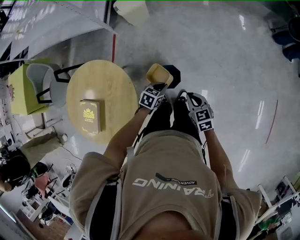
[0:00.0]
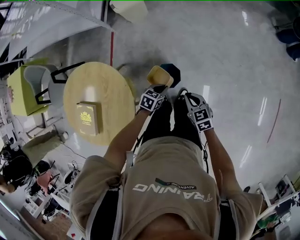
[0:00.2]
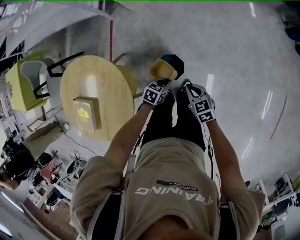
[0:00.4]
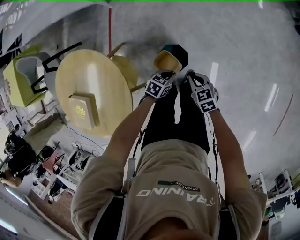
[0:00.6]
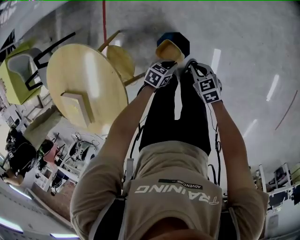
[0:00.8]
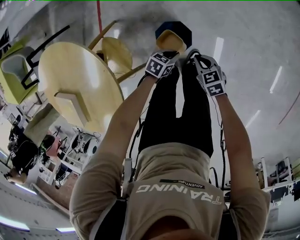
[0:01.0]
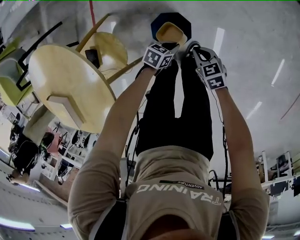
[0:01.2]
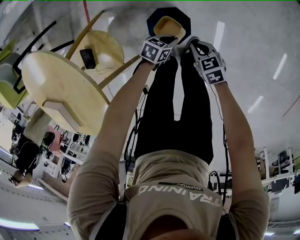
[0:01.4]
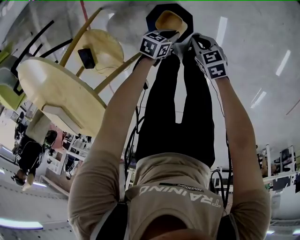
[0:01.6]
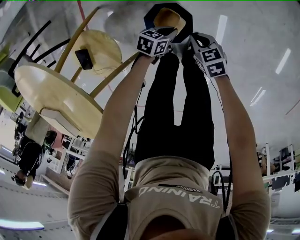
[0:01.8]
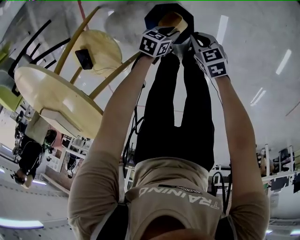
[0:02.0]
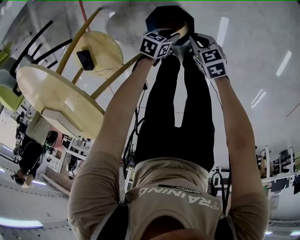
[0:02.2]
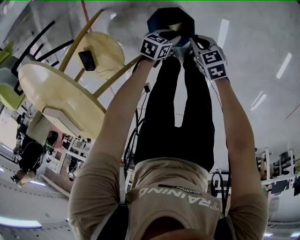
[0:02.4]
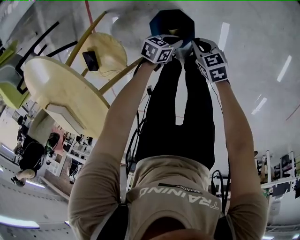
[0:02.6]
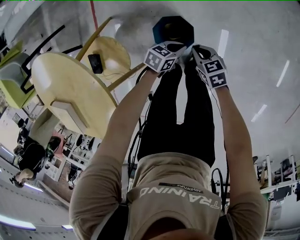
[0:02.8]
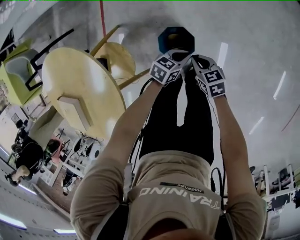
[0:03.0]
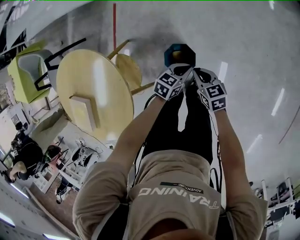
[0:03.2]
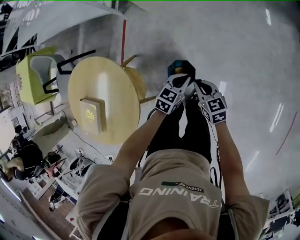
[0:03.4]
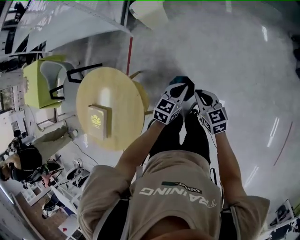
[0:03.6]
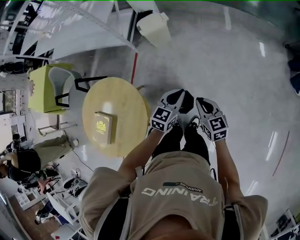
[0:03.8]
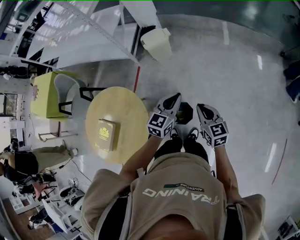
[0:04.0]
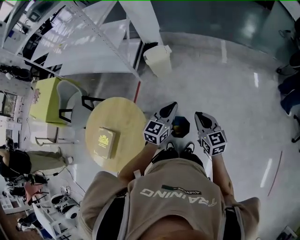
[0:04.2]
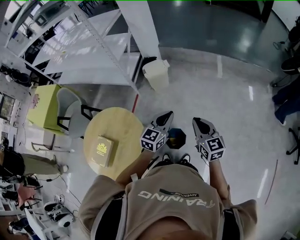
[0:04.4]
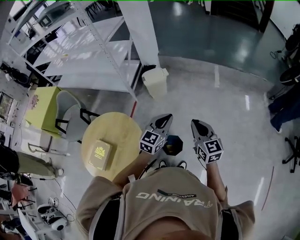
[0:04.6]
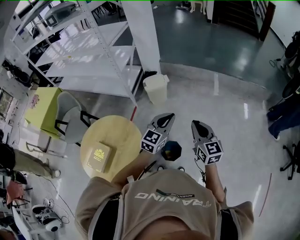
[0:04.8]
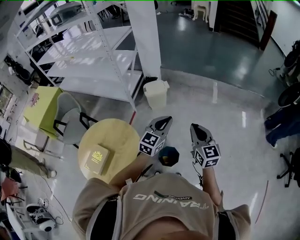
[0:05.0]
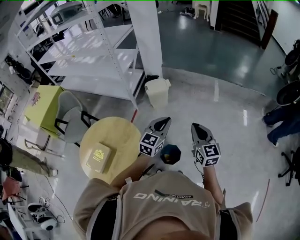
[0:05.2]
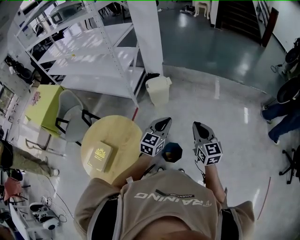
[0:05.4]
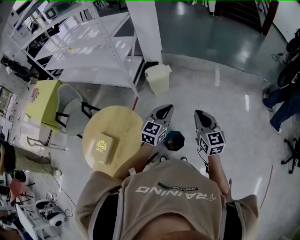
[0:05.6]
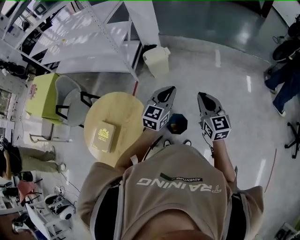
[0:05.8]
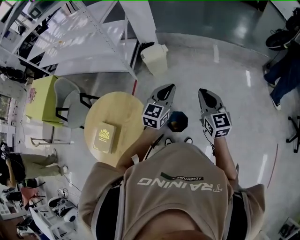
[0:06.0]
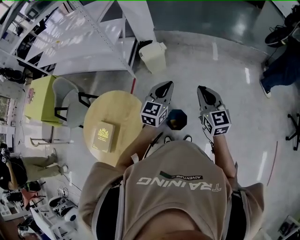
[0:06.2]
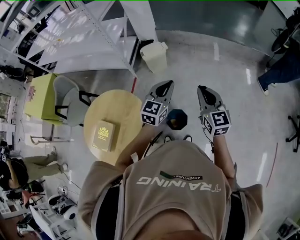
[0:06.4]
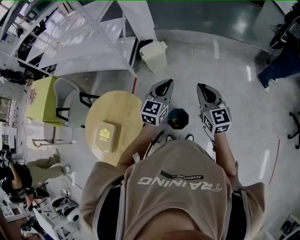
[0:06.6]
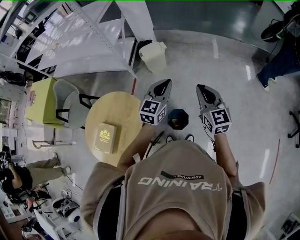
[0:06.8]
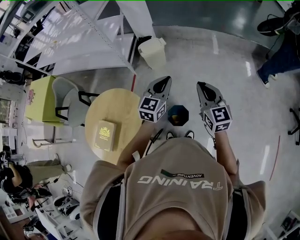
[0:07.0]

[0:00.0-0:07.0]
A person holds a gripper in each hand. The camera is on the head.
0:00.0 to 0:01.4: Both grippers move downward, some 40 cm. The right gripper changes its angle by approximately 20 degrees.
0:01.4 to 0:02.8: The right gripper travels downward and back again, about 5 cm each way, while the left gripper is displaced upward by approximately 5 cm, and opens, then closes again.
0:02.8 to 0:04.2: The grippers both shift upward by about 60 cm. The right gripper tilts its fingers some 30 degrees upward, while the left gripper angles its fingers upward, by approximately 30 degrees.
0:04.2 to 0:05.6: The grippers both shift upward by some 10 cm.
0:05.6 to 0:07.0: The grippers stay close to where they were, moving slightly.

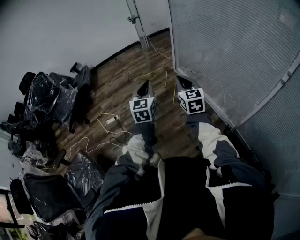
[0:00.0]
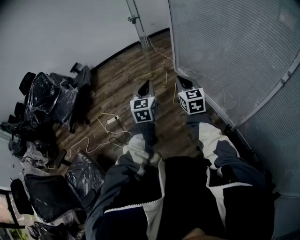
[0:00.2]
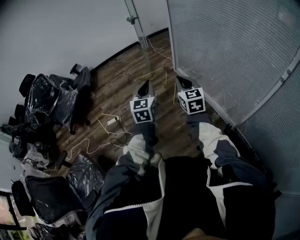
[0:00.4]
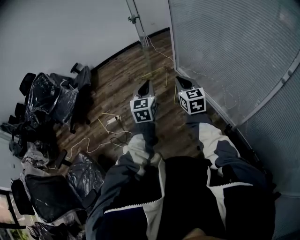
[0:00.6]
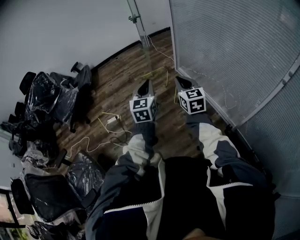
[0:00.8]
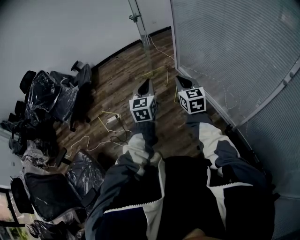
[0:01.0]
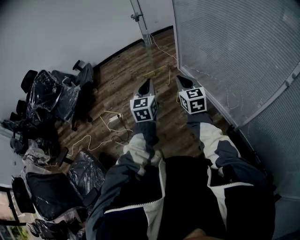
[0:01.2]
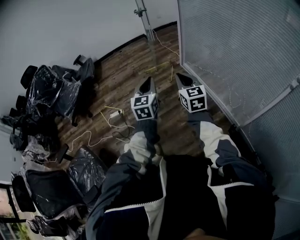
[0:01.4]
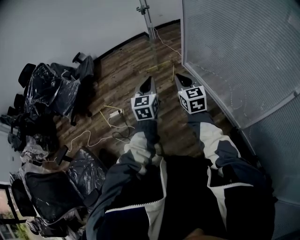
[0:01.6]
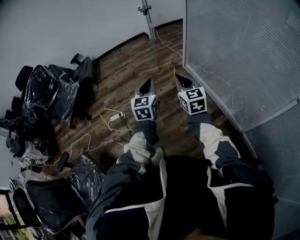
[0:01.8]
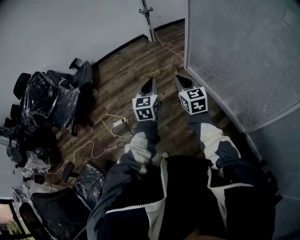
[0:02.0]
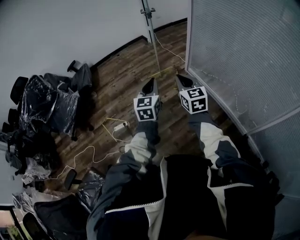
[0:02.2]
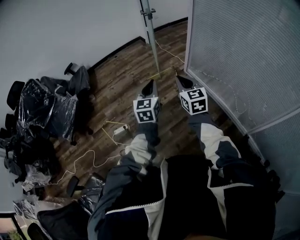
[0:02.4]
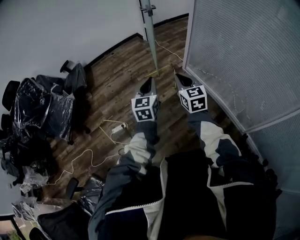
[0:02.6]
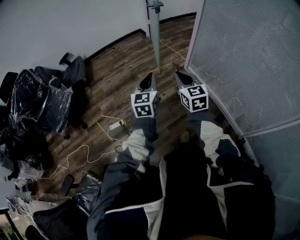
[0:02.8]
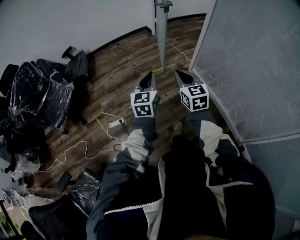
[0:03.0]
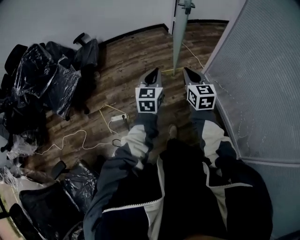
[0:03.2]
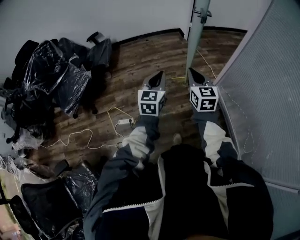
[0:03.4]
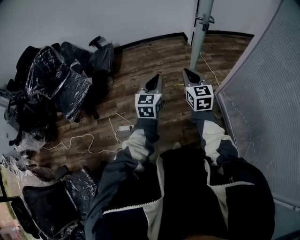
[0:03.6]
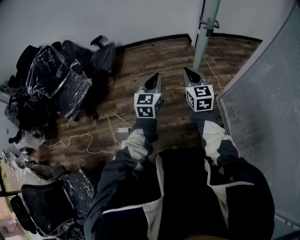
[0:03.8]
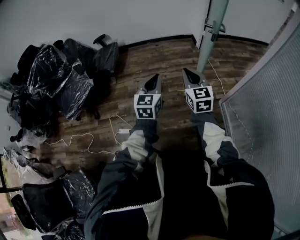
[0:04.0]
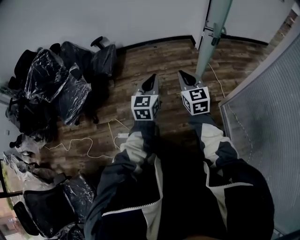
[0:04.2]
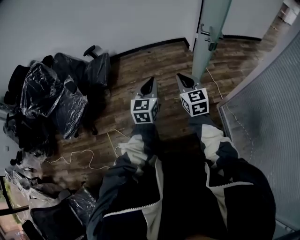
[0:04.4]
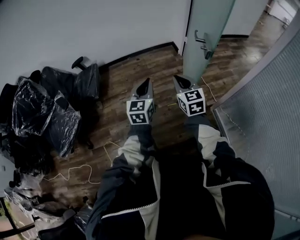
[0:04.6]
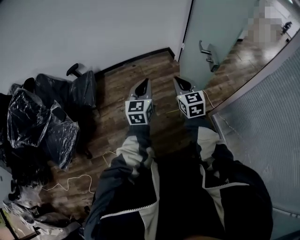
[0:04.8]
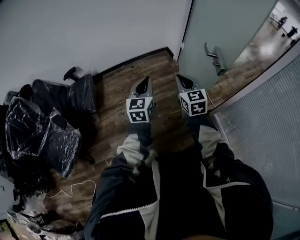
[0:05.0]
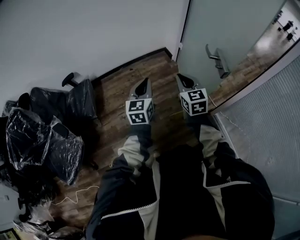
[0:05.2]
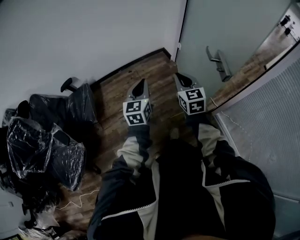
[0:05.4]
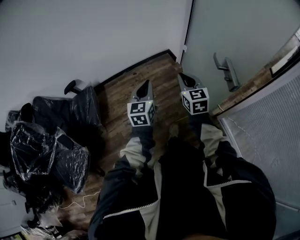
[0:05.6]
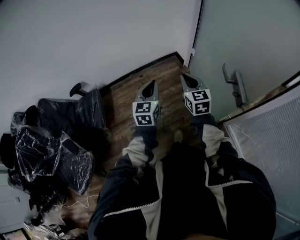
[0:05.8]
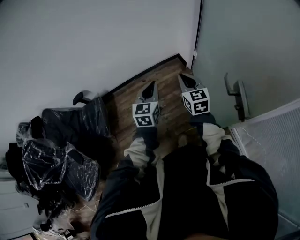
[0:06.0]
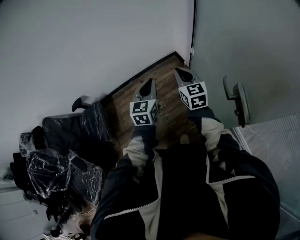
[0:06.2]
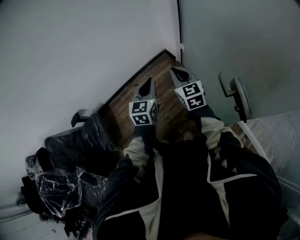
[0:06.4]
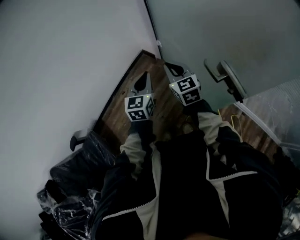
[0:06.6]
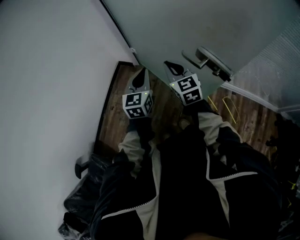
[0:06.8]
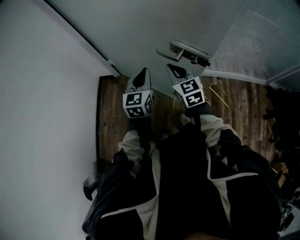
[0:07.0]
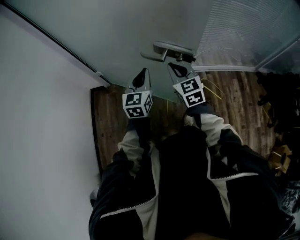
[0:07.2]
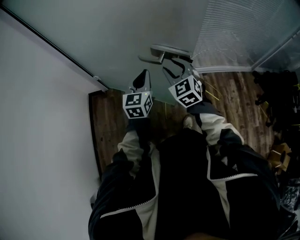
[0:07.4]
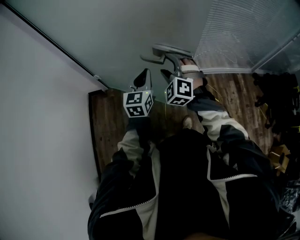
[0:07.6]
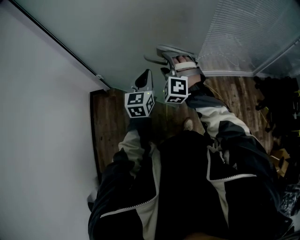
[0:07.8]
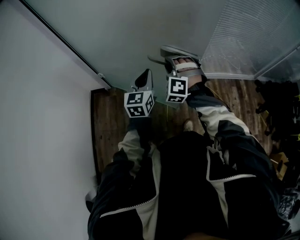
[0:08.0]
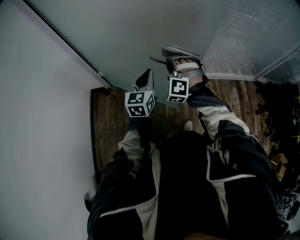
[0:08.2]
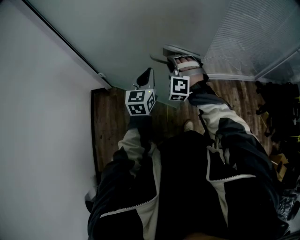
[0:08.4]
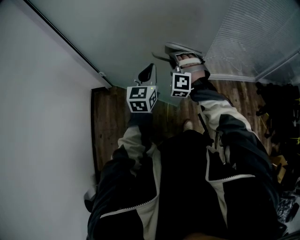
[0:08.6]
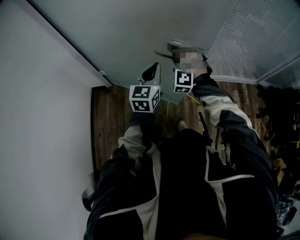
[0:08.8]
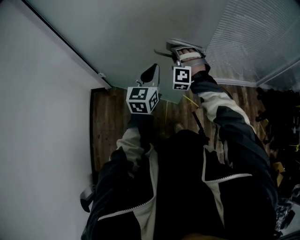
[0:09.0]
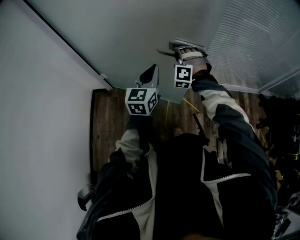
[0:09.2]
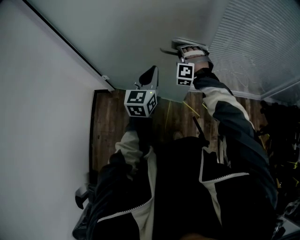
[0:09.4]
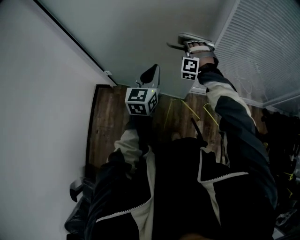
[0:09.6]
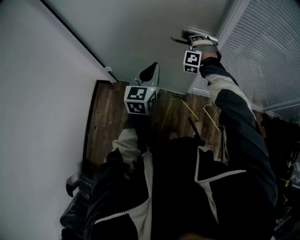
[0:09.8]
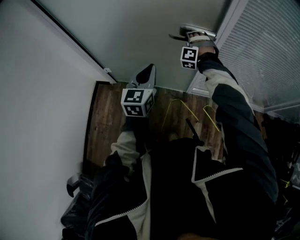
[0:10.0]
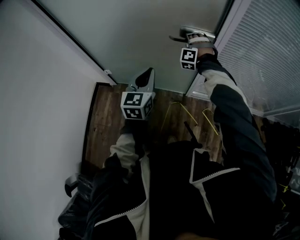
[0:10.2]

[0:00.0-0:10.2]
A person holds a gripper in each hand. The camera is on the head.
0:00.0 to 0:01.4: The grippers make only small movements.
0:01.4 to 0:03.0: The grippers both shift forward and to the left by roughly 35 cm.
0:03.0 to 0:04.4: Both grippers move forward, about 35 cm.
0:04.4 to 0:05.8: The grippers both shift forward by roughly 35 cm.
0:05.8 to 0:07.2: The right gripper ends up approximately 20 cm from where it was, and changes its angle by roughly 60 degrees. The left gripper ends up some 30 cm from where it was, and changes its angle by about 70 degrees.
0:07.2 to 0:08.8: The right gripper is displaced forward and downward by some 10 cm, rolls counterclockwise, seen from behind, by roughly 80 degrees, and opens its fingers.
0:08.8 to 0:10.2: The right gripper shifts roughly 30 cm forward. Meanwhile the left gripper moves forward, roughly 10 cm.

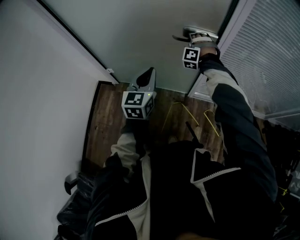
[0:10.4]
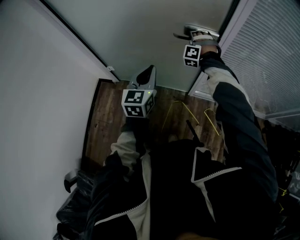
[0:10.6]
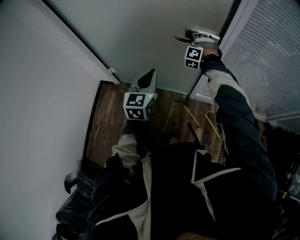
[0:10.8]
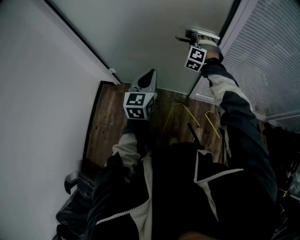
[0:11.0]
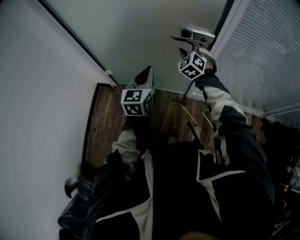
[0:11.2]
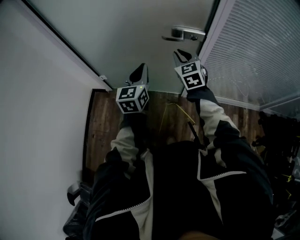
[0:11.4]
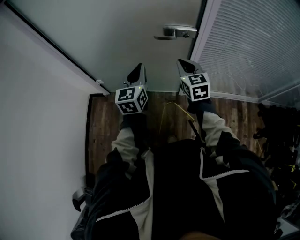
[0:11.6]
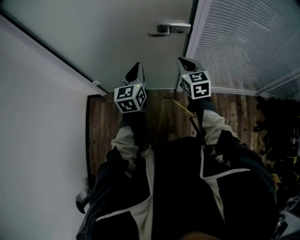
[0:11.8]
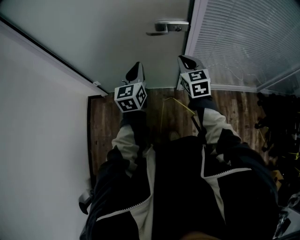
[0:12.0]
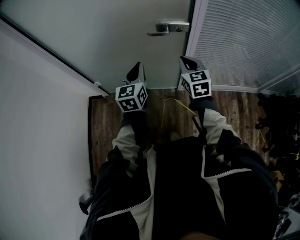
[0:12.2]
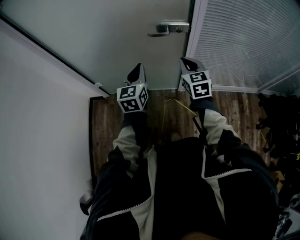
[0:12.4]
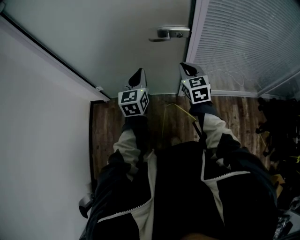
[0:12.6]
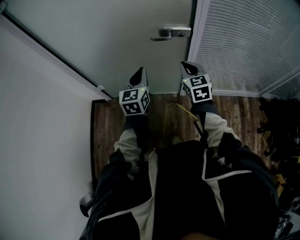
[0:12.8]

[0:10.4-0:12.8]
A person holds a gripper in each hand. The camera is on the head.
0:10.4 to 0:11.6: The right gripper moves backward, approximately 20 cm, rotates around the line of its fingers by approximately 90 degrees, clockwise from behind, and closes.
0:11.6 to 0:12.8: There are only small adjustments of the grippers.

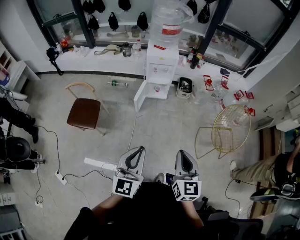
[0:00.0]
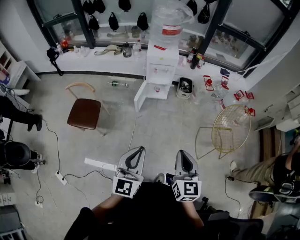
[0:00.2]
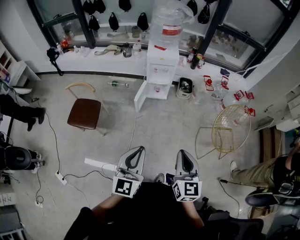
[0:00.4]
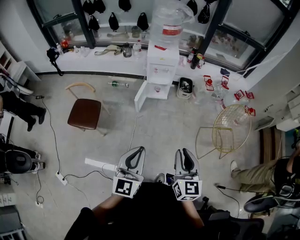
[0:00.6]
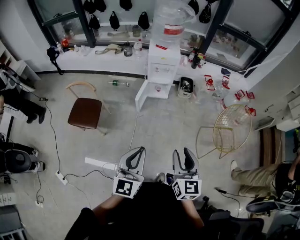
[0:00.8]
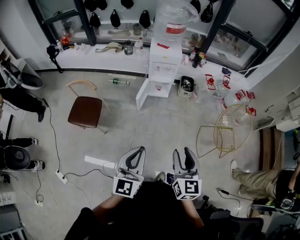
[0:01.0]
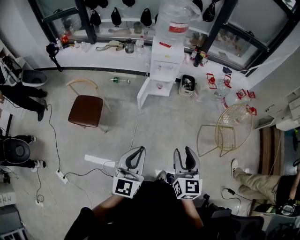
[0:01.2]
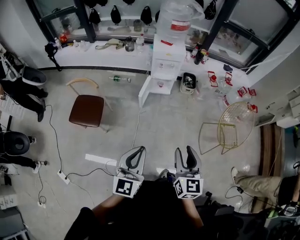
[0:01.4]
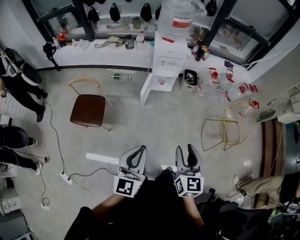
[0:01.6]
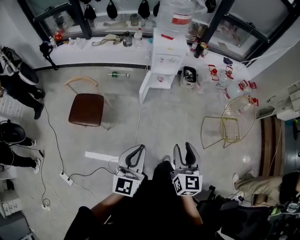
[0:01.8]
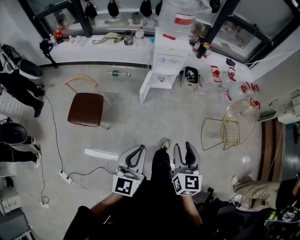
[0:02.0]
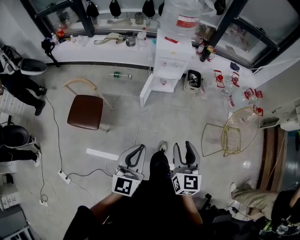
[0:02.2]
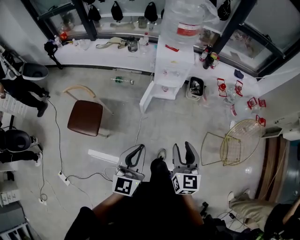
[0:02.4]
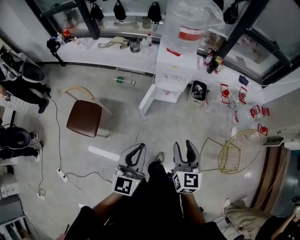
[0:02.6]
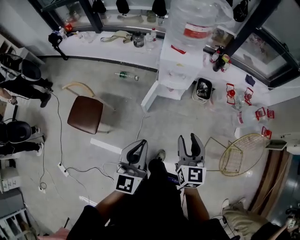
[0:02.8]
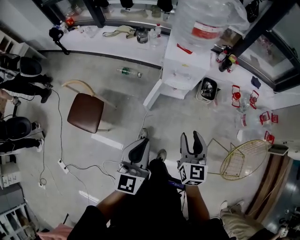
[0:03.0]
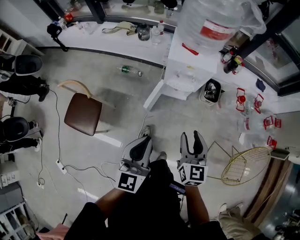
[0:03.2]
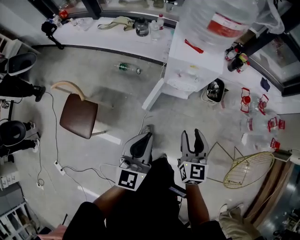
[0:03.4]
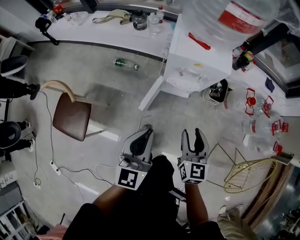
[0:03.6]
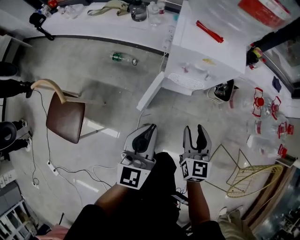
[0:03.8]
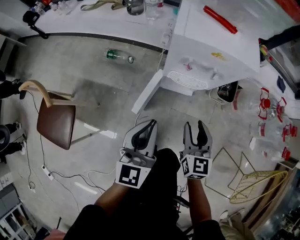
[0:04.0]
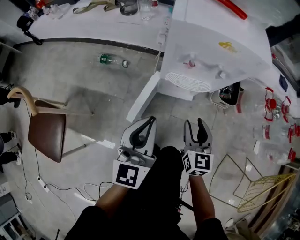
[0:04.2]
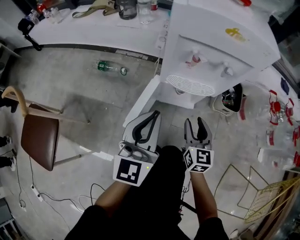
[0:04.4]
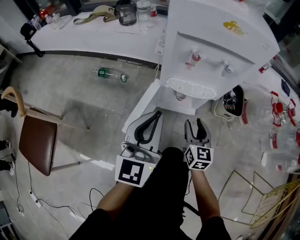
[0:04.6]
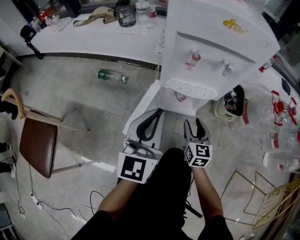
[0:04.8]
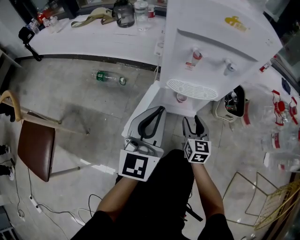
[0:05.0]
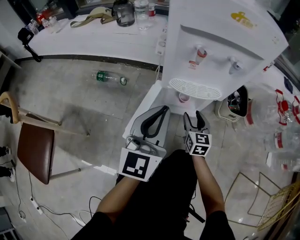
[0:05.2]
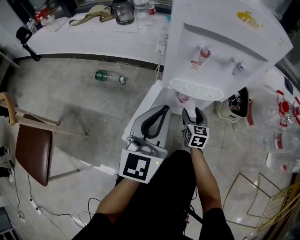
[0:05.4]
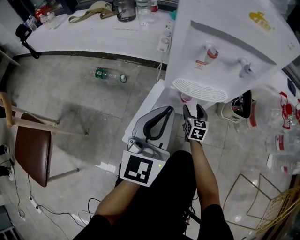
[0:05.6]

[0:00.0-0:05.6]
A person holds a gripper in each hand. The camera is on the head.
0:00.0 to 0:01.4: The two grippers go some 5 cm to the left. The right gripper opens up.
0:01.4 to 0:02.8: The grippers both shift forward by roughly 35 cm.
0:02.8 to 0:04.2: The grippers both shift downward and forward by approximately 60 cm.
0:04.2 to 0:05.6: The left gripper travels downward and forward by approximately 15 cm, while the right gripper goes about 35 cm downward and forward.
